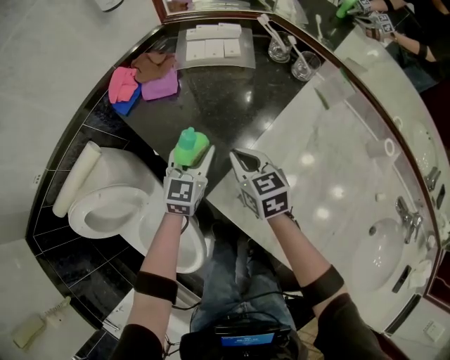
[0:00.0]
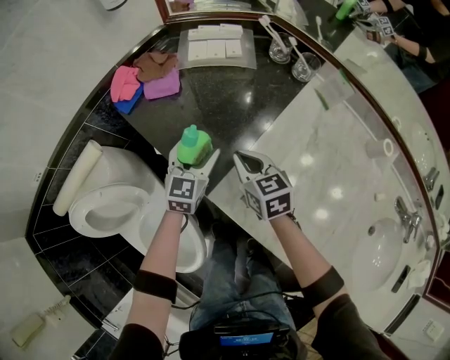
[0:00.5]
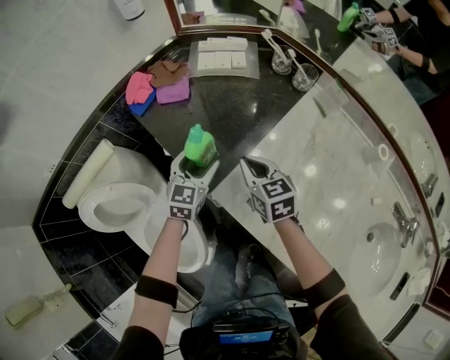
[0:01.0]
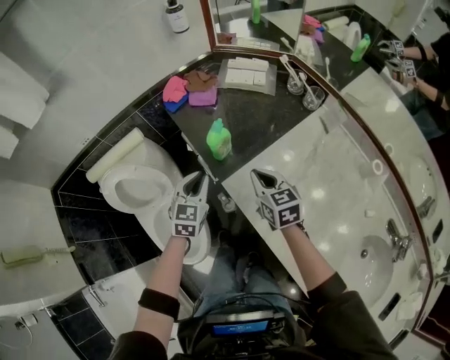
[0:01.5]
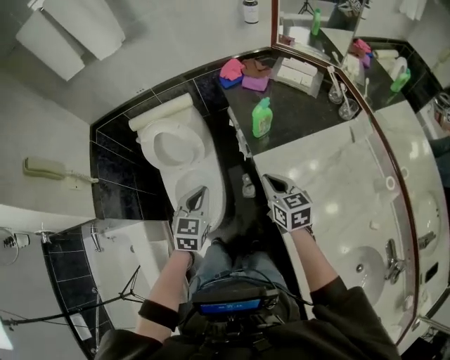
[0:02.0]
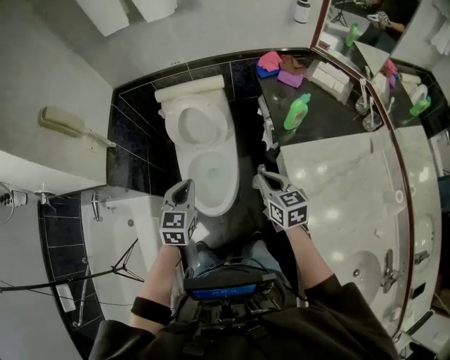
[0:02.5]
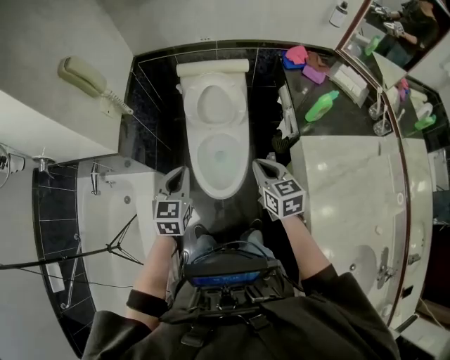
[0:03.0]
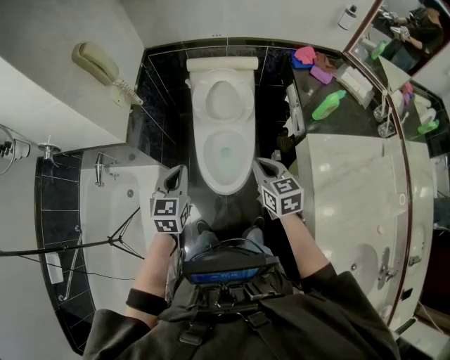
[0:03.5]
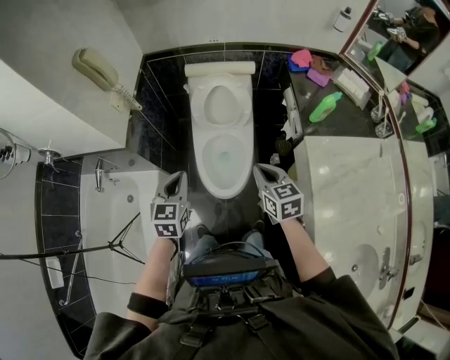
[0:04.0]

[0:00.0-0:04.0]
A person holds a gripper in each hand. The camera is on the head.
0.0 to 2.0 s: The left gripper moves roughly 40 cm, rotates some 40 degrees, and closes. Meanwhile the right gripper shifts by about 25 cm, and rotates about 20 degrees.
2.0 to 4.0 s: Both grippers travel together to the left, about 30 cm. The left gripper changes its angle by roughly 20 degrees.

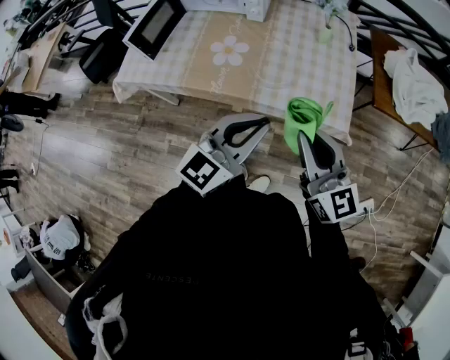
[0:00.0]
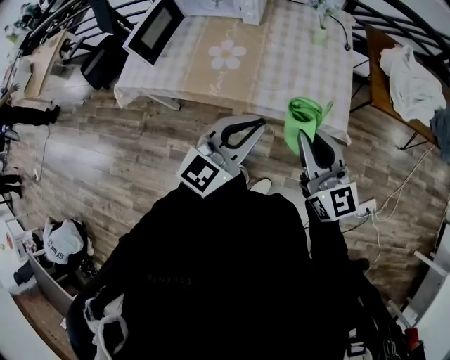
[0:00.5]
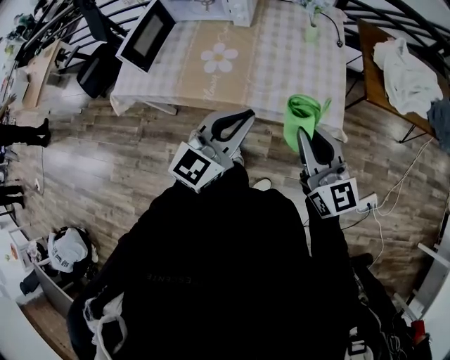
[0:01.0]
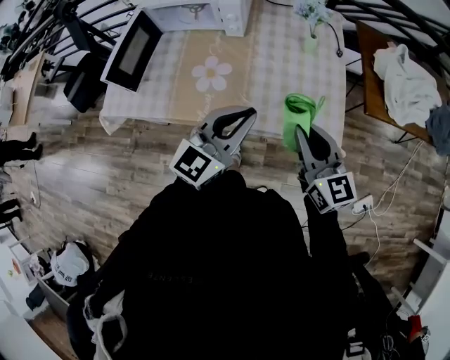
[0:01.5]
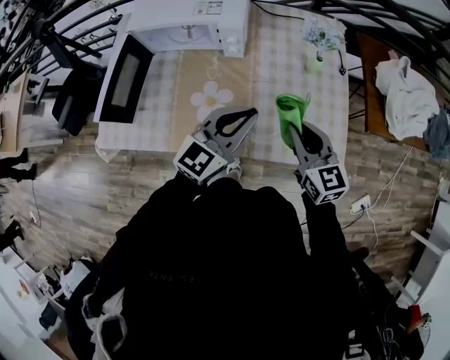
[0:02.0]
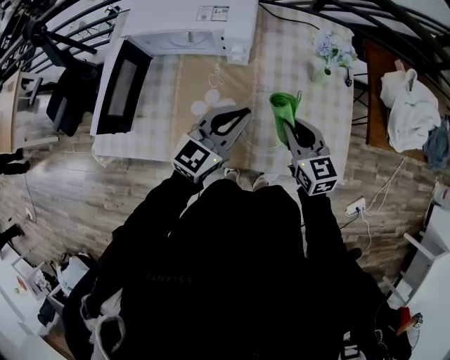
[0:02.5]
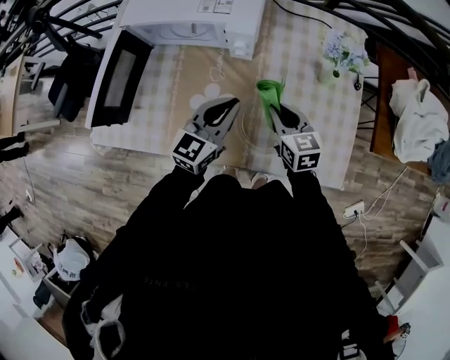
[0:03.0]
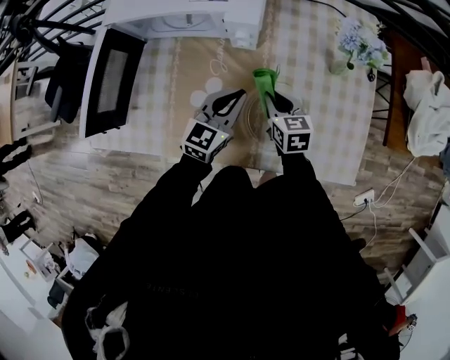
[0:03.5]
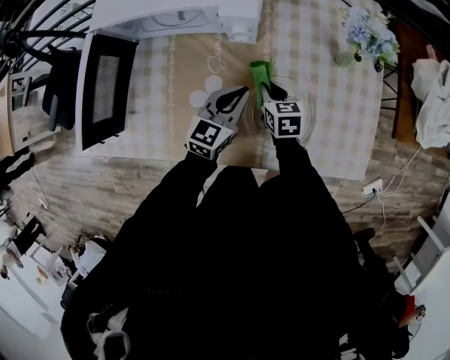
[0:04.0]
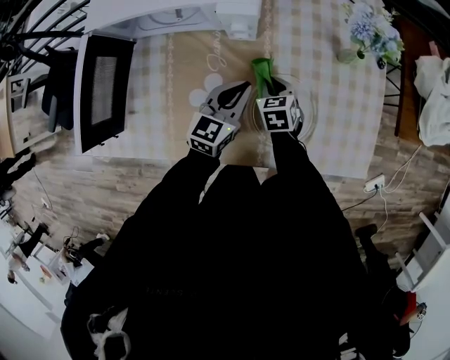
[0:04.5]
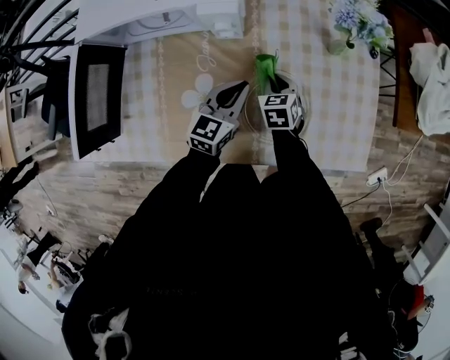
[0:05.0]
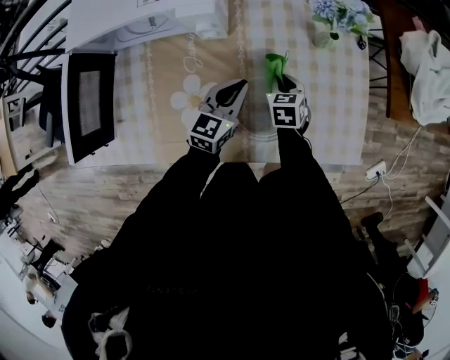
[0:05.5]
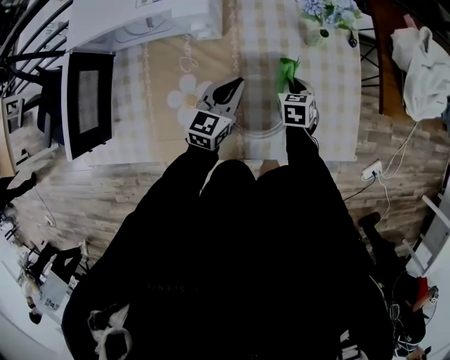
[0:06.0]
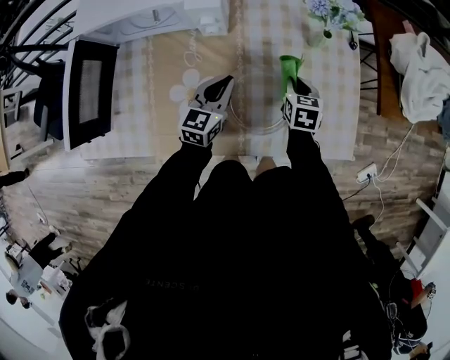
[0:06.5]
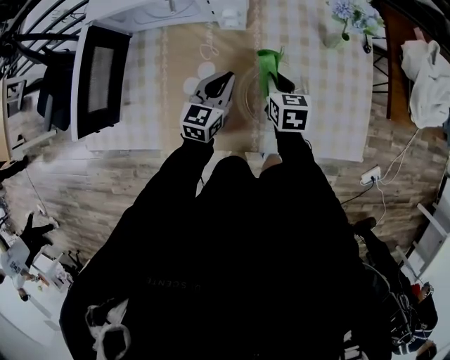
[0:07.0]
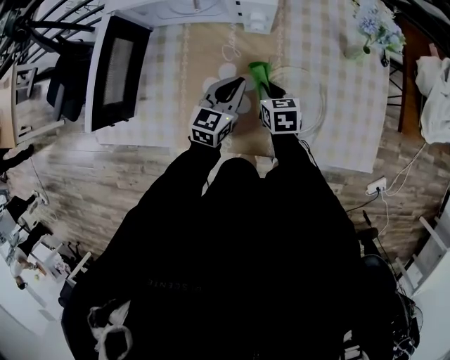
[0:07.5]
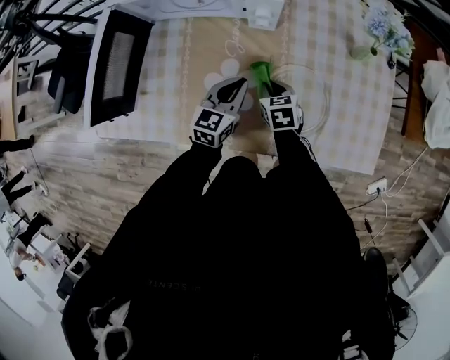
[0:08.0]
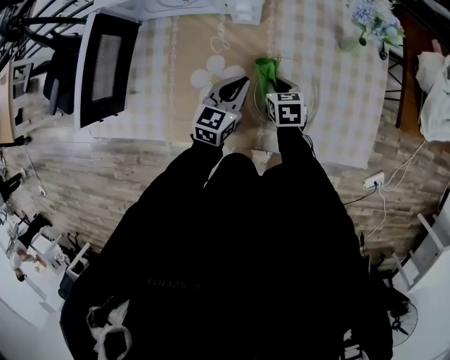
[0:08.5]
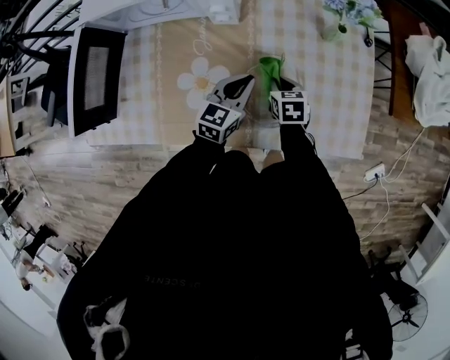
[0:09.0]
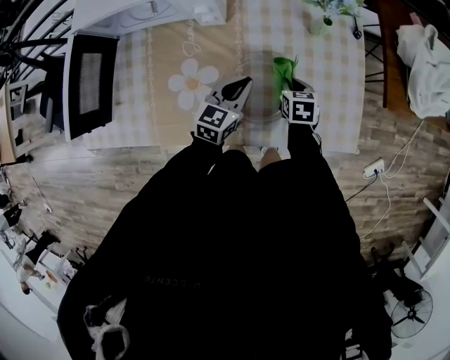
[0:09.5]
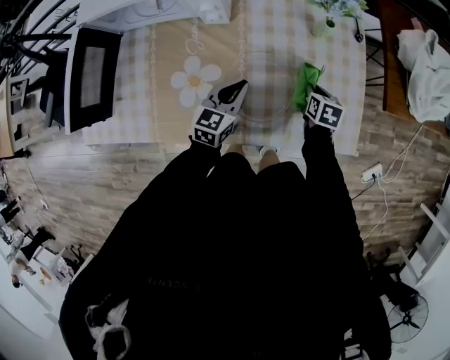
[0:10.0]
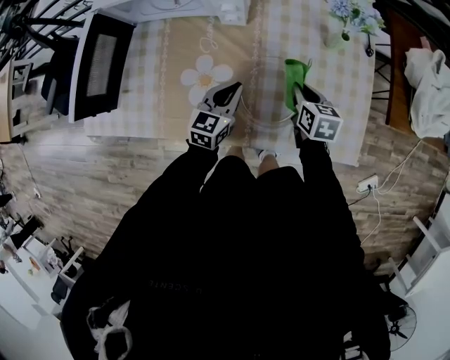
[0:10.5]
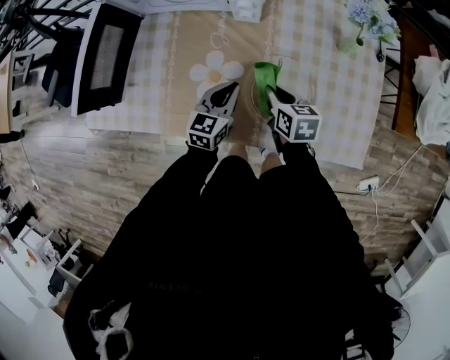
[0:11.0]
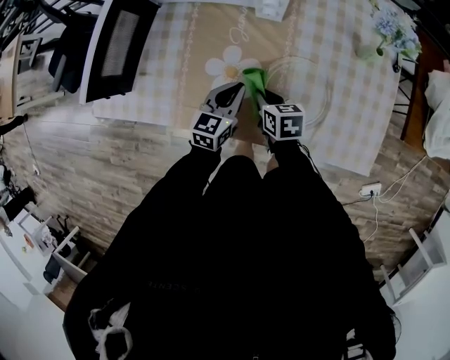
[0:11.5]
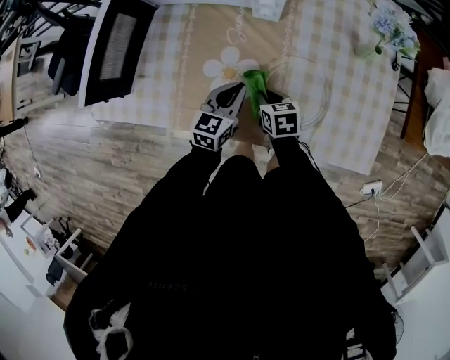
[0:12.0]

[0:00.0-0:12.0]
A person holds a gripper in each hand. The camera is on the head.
0.0 to 2.0 s: The grippers both shift forward by approximately 30 cm. The right gripper swivels some 20 degrees.
2.0 to 4.0 s: The right gripper is displaced downward, forward and to the left by about 35 cm, and changes its angle by approximately 30 degrees; the left gripper goes approximately 25 cm downward and forward, and rotates roughly 20 degrees.
4.0 to 6.0 s: The left gripper goes approximately 5 cm to the right. The right gripper heads to the right, covering some 15 cm, and changes its angle by about 20 degrees.
6.0 to 8.0 s: The left gripper moves to the left, about 10 cm. Meanwhile the right gripper heads to the left, covering roughly 20 cm, and turns by about 20 degrees.
8.0 to 10.0 s: The left gripper shifts about 10 cm to the right. Meanwhile the right gripper travels to the right by roughly 30 cm, and turns by roughly 30 degrees.
10.0 to 12.0 s: The right gripper moves roughly 30 cm, and changes its angle by roughly 30 degrees. Meanwhile the left gripper shifts by roughly 10 cm.

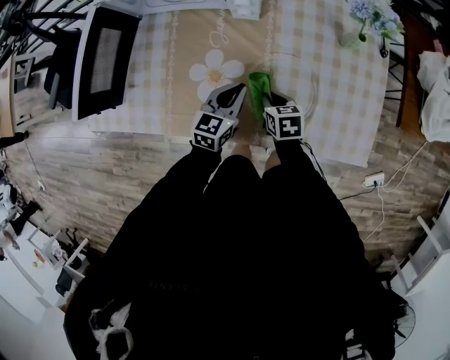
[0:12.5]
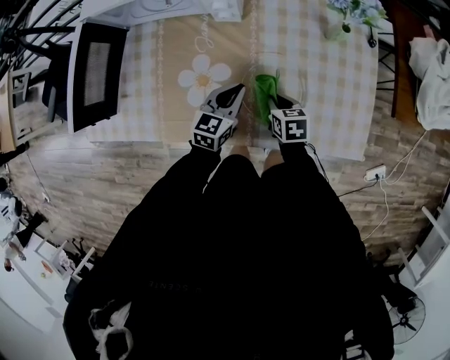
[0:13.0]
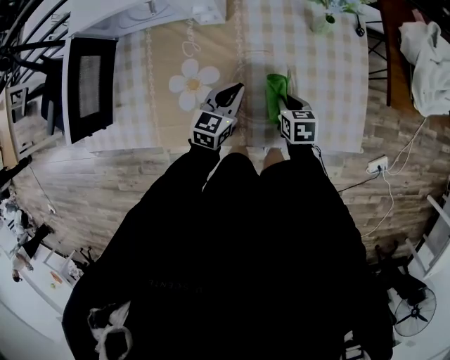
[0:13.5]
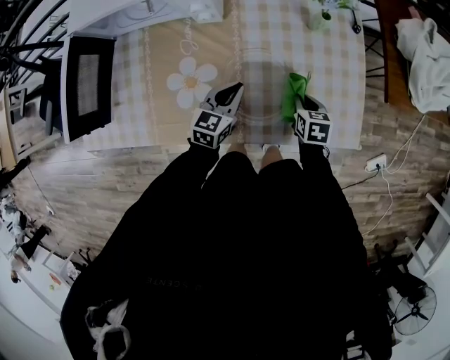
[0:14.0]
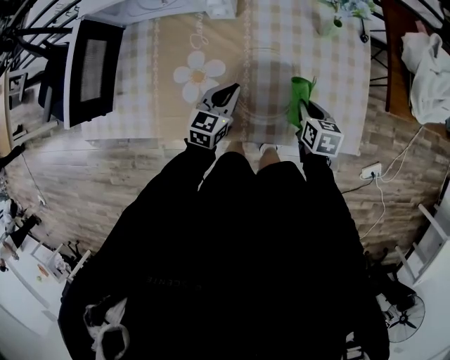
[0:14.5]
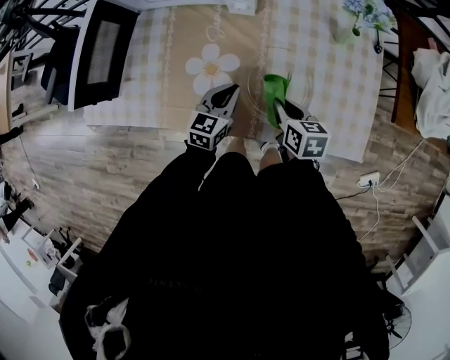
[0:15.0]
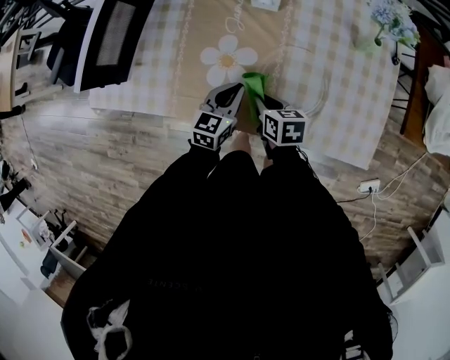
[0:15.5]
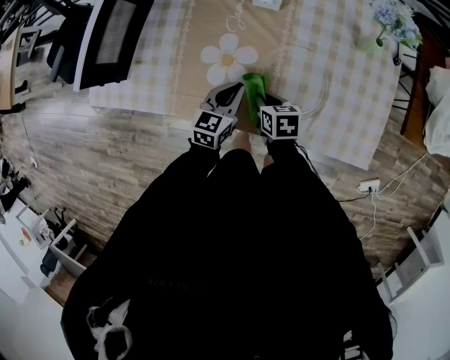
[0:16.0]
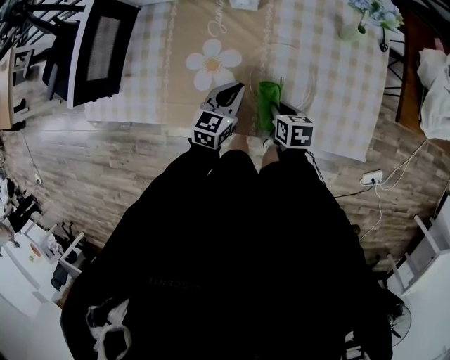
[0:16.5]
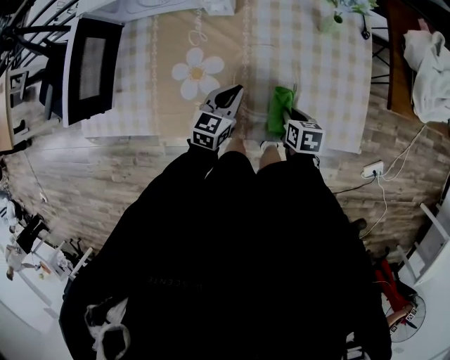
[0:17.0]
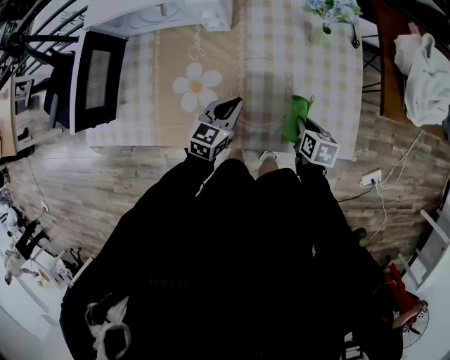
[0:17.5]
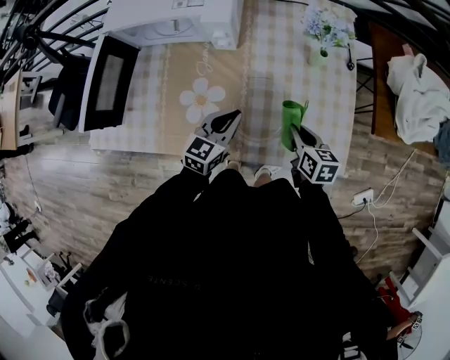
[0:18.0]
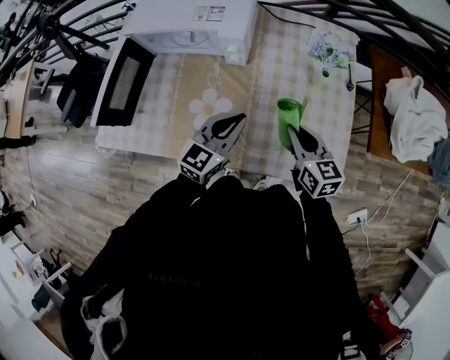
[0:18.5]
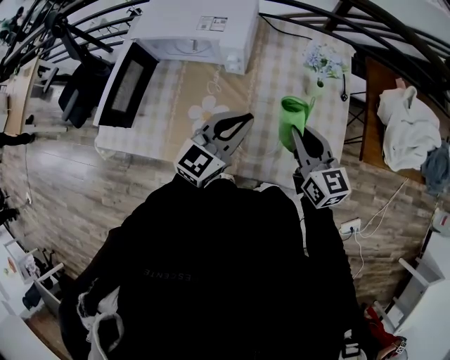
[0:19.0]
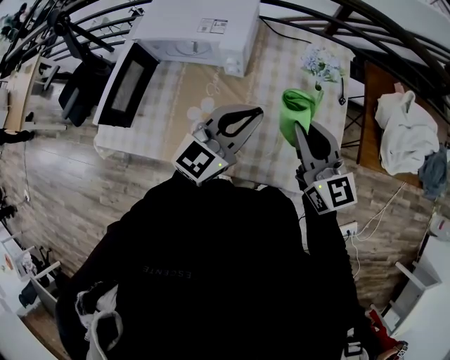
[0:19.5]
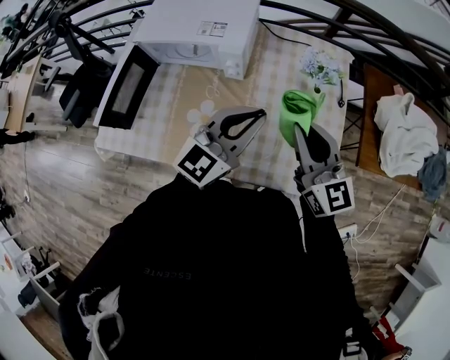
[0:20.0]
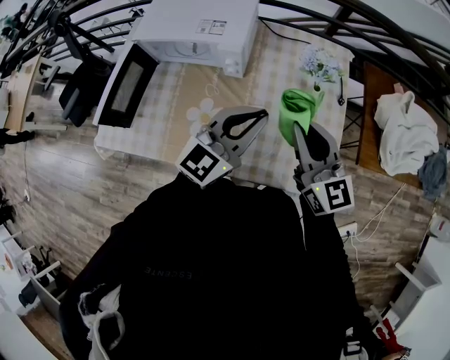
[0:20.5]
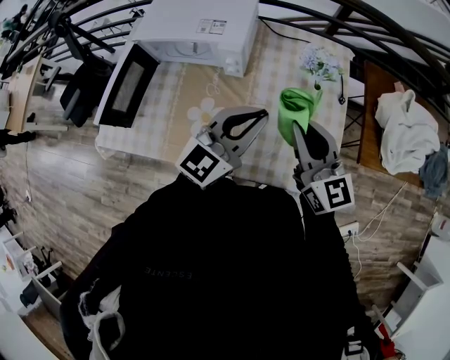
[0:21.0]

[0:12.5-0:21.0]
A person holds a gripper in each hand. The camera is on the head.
12.5 to 14.5 s: The right gripper shifts about 20 cm to the right.
14.5 to 16.5 s: The right gripper shifts roughly 15 cm to the left.
16.5 to 19.0 s: The grippers both shift upward by roughly 30 cm. The right gripper tilts its fingers about 40 degrees upward, while the left gripper rotates about 30 degrees.
19.0 to 21.0 s: The grippers both shift upward by approximately 5 cm.

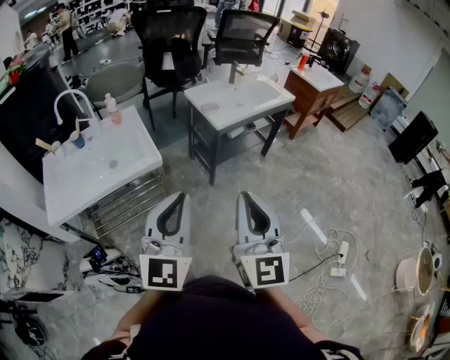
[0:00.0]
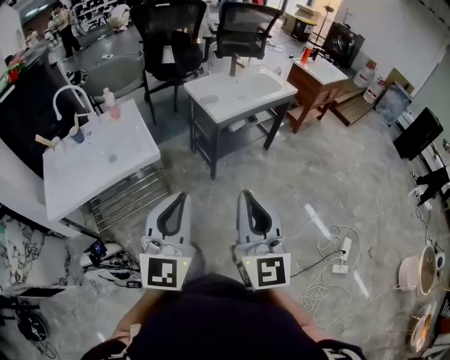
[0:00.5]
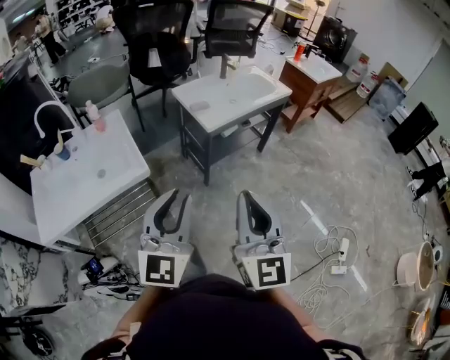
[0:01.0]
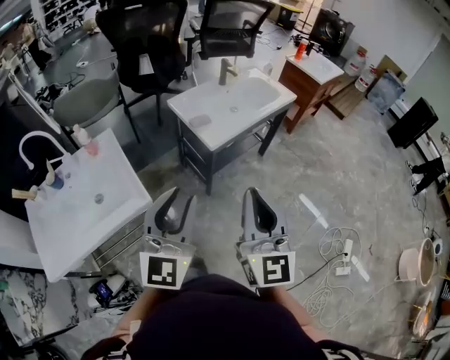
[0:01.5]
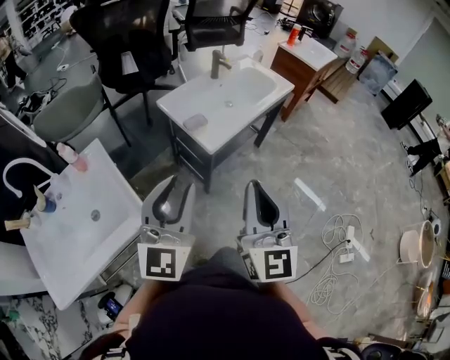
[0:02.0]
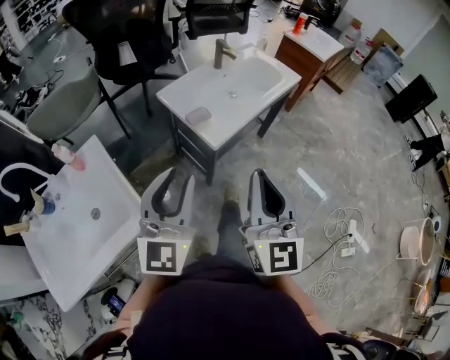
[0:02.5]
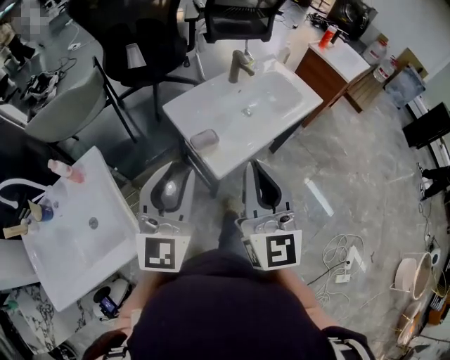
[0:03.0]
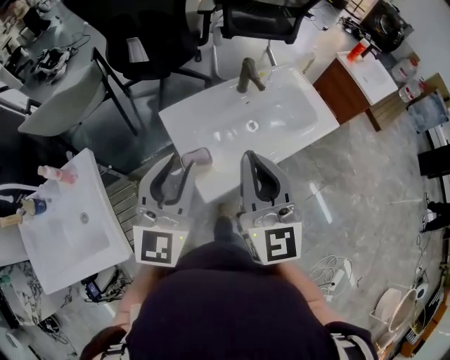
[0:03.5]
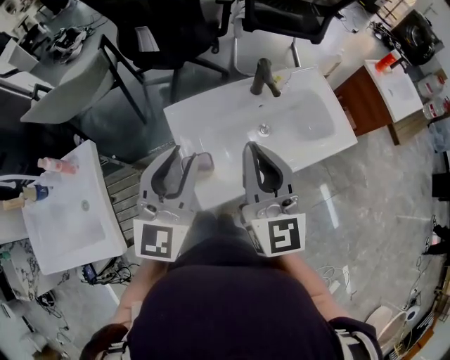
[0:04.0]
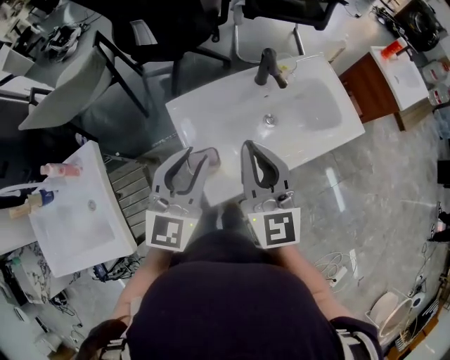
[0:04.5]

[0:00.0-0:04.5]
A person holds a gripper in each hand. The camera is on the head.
0.0 to 2.0 s: Both grippers move forward, about 30 cm. The left gripper opens up.
2.0 to 4.5 s: Both grippers travel together forward, about 40 cm. The right gripper rotates approximately 30 degrees. The left gripper changes its angle by approximately 20 degrees.
